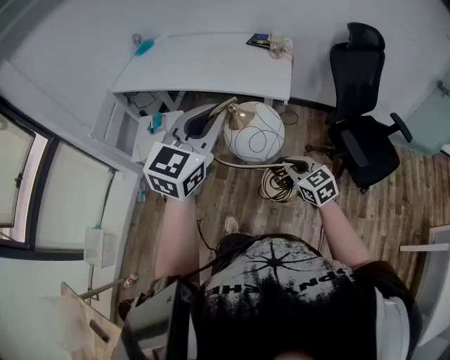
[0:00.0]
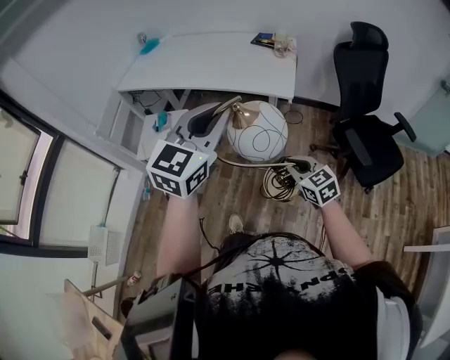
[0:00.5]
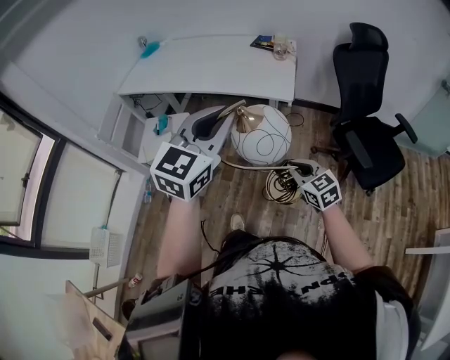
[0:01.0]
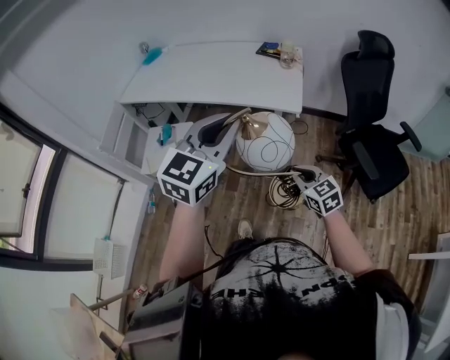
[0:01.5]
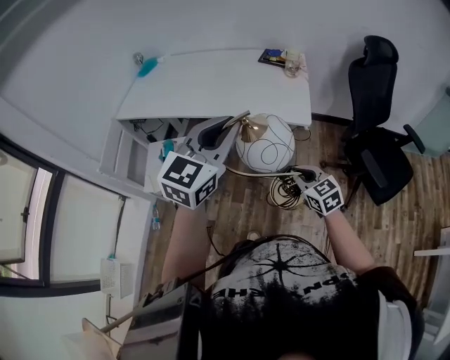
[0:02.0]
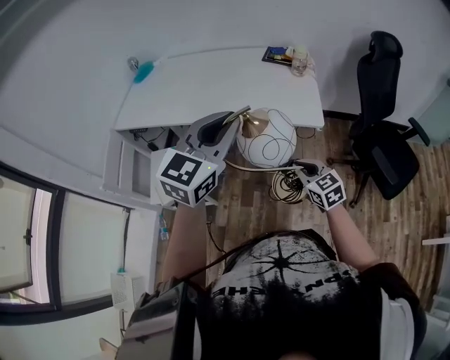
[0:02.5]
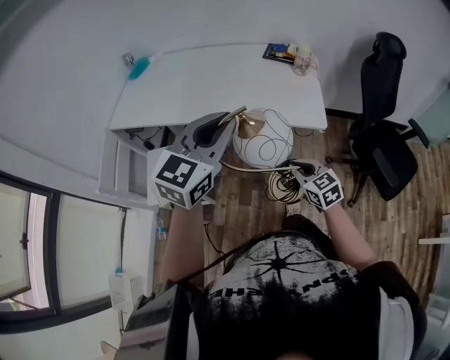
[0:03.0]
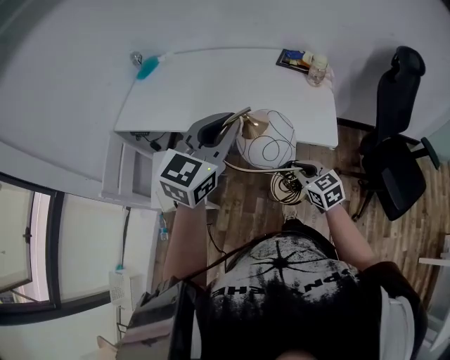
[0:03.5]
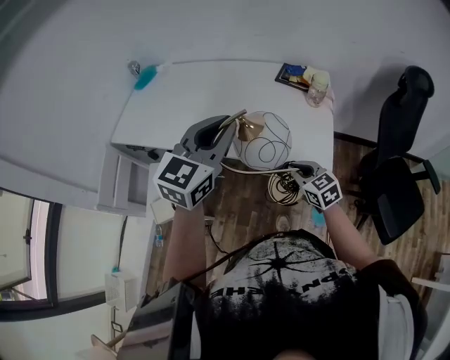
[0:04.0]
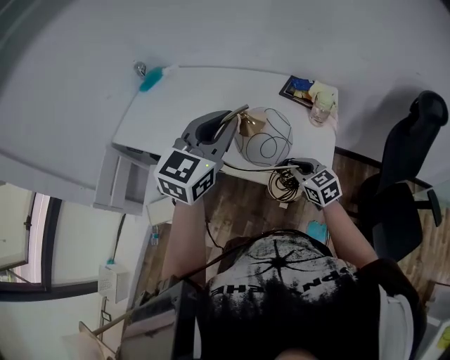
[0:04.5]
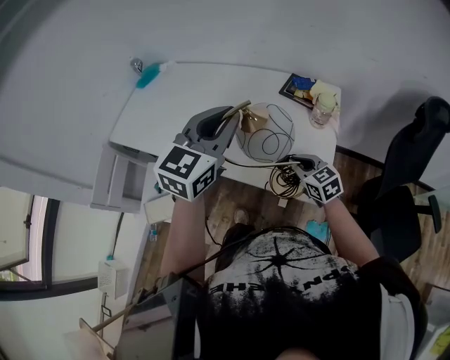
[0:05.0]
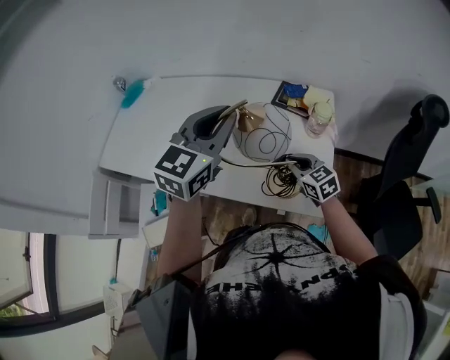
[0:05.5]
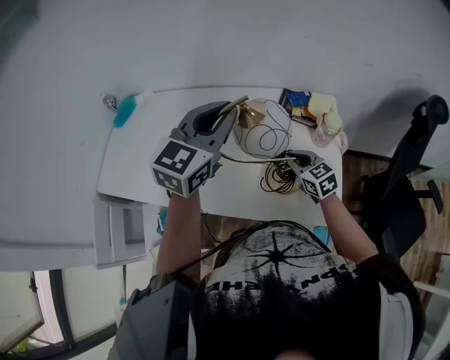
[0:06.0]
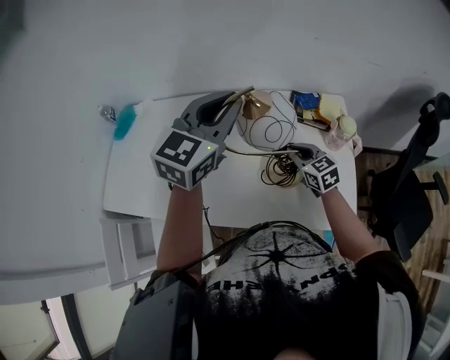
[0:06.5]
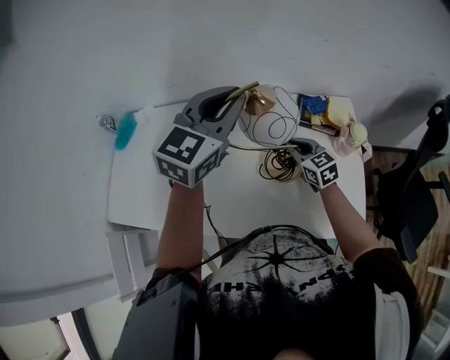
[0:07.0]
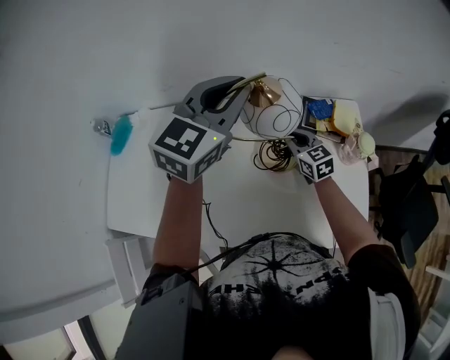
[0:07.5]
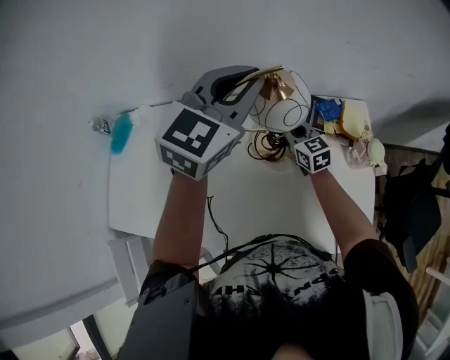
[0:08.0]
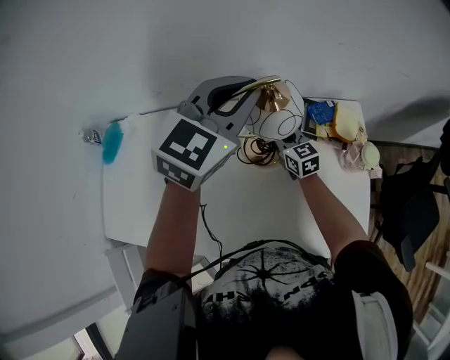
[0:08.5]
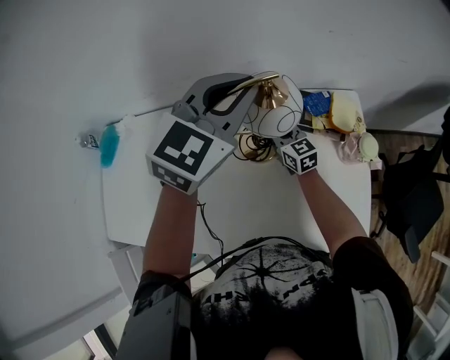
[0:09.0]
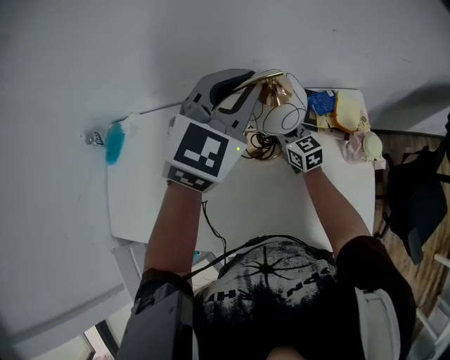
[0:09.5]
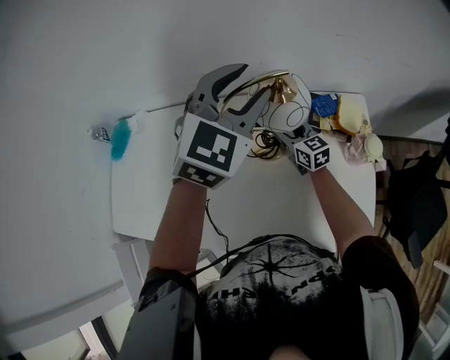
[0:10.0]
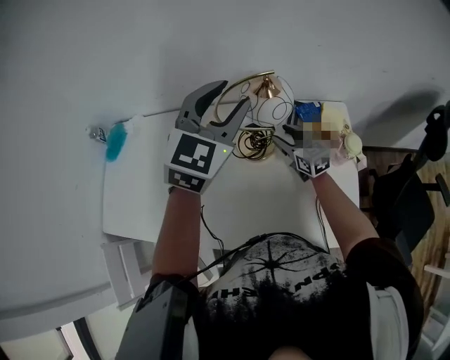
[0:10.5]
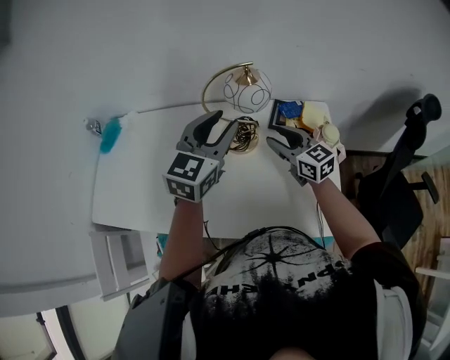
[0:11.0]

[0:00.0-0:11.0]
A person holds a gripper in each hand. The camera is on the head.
0:00.0 to 0:02.0: Both grippers move forward and to the left, some 15 cm.
0:02.0 to 0:03.5: The grippers both shift forward and to the left by about 20 cm.
0:03.5 to 0:05.5: The right gripper is displaced forward by approximately 30 cm; the left gripper travels forward and to the right by roughly 30 cm.
0:05.5 to 0:07.5: The right gripper is displaced forward and to the left by about 30 cm; the left gripper goes about 25 cm forward.
0:07.5 to 0:09.0: The right gripper goes about 5 cm forward. The left gripper goes some 5 cm to the right.
0:09.0 to 0:11.0: The left gripper shifts roughly 15 cm backward, rotates approximately 20 degrees, and opens. The right gripper heads upward, backward and to the right, covering approximately 20 cm, and opens.

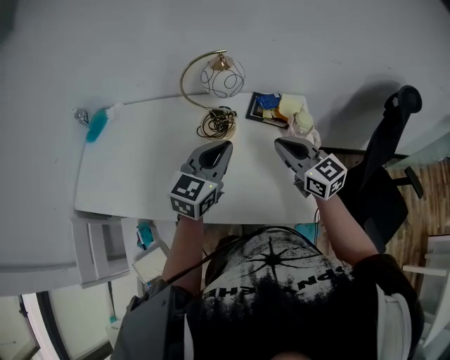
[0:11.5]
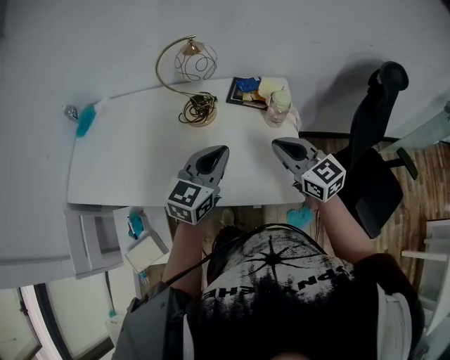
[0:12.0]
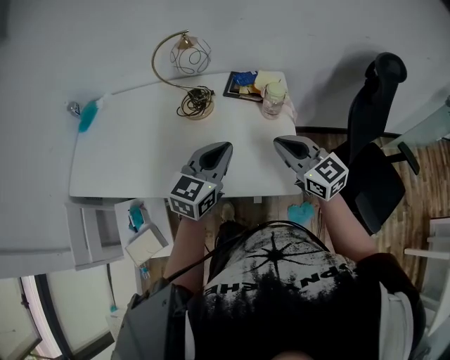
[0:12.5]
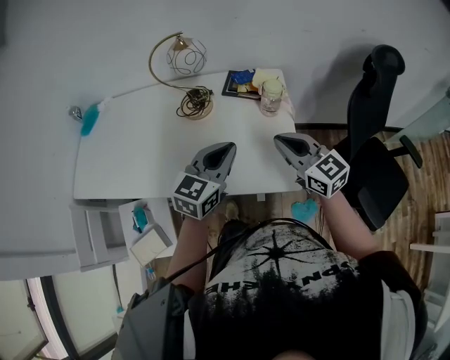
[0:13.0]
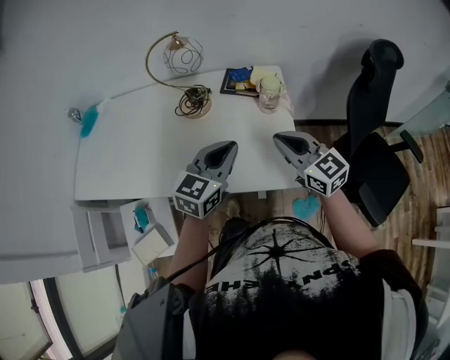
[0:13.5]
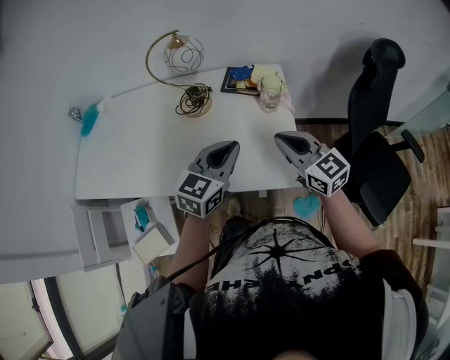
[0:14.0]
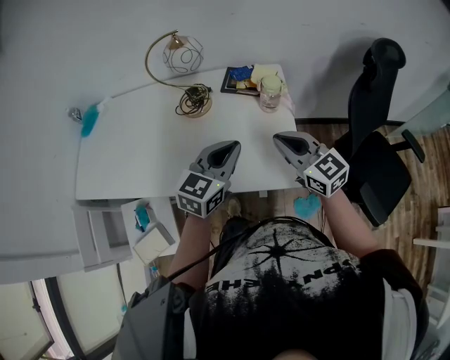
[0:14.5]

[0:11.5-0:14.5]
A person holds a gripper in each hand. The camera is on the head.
0:11.5 to 0:13.0: Both grippers move backward and to the right, approximately 15 cm.
0:13.0 to 0:14.5: There are only small adjustments of the grippers.

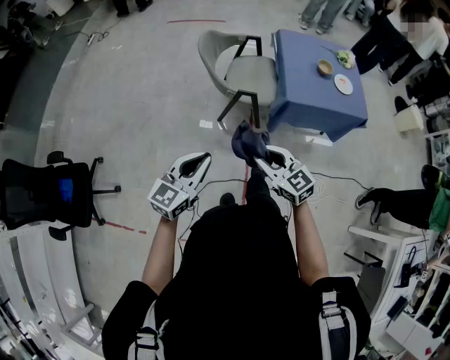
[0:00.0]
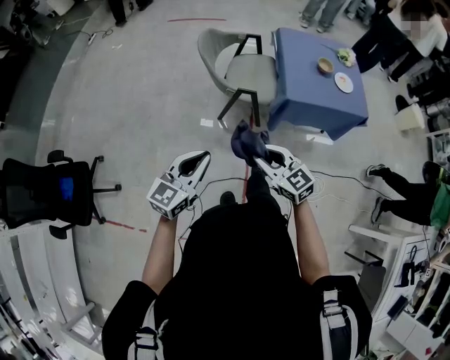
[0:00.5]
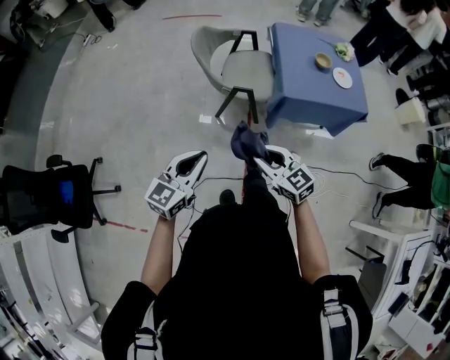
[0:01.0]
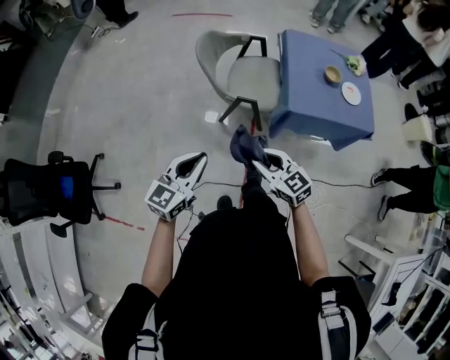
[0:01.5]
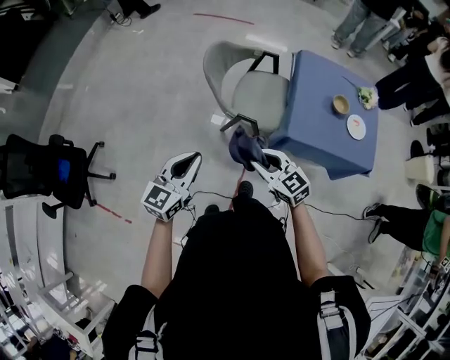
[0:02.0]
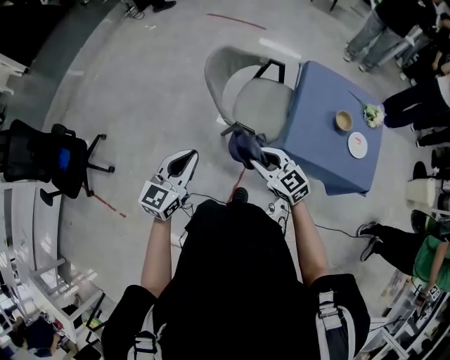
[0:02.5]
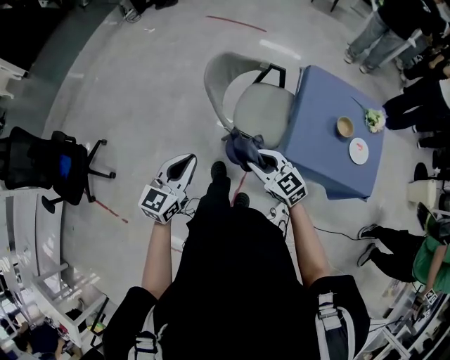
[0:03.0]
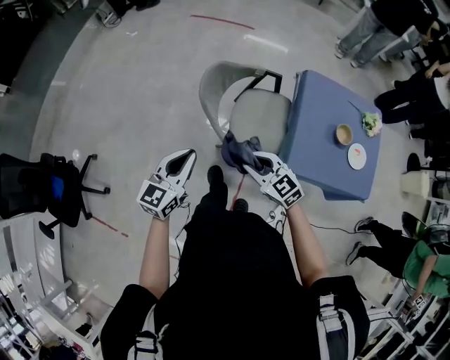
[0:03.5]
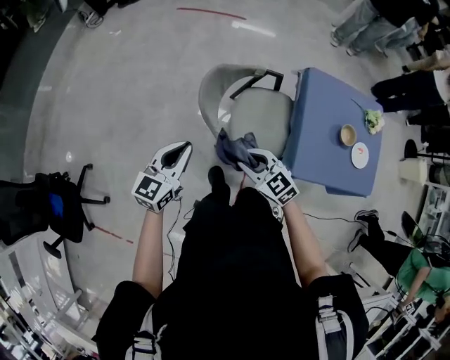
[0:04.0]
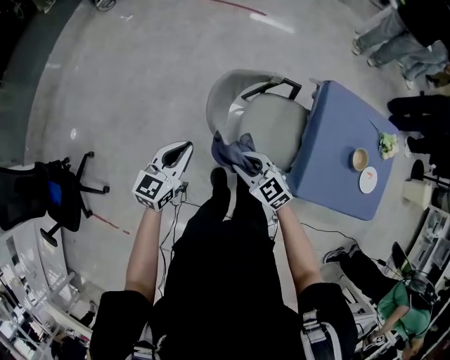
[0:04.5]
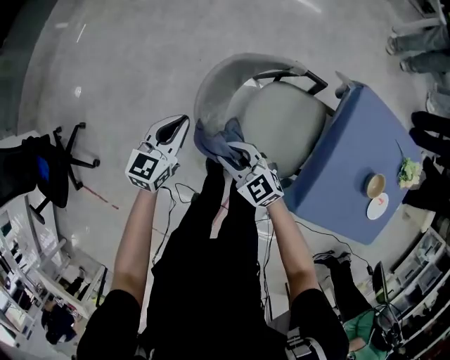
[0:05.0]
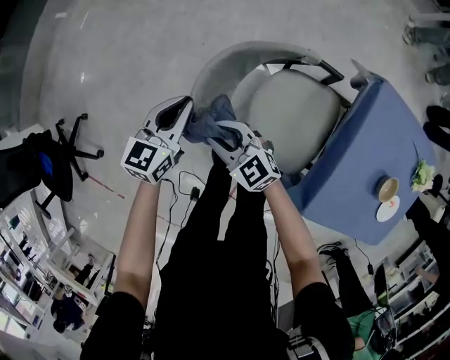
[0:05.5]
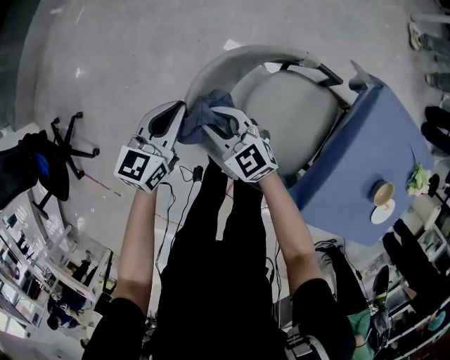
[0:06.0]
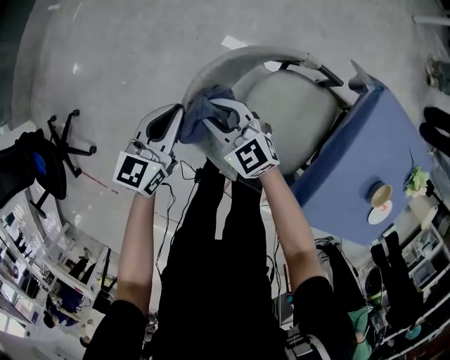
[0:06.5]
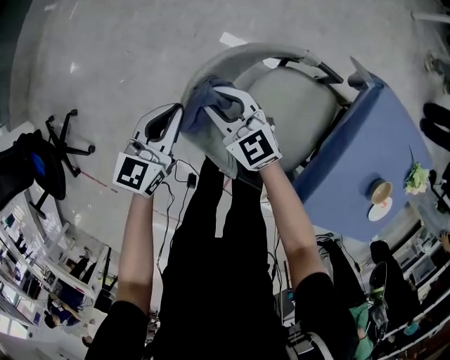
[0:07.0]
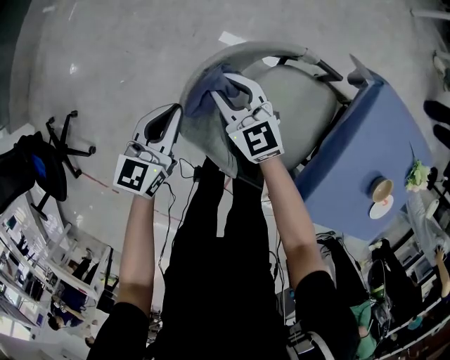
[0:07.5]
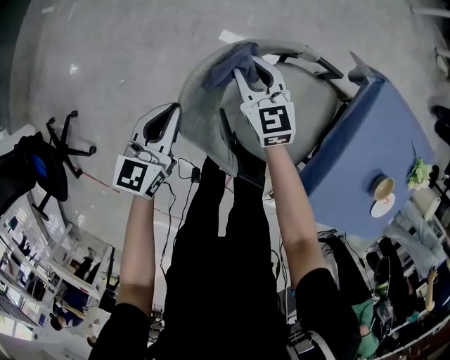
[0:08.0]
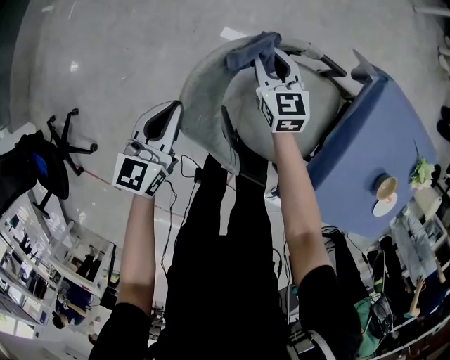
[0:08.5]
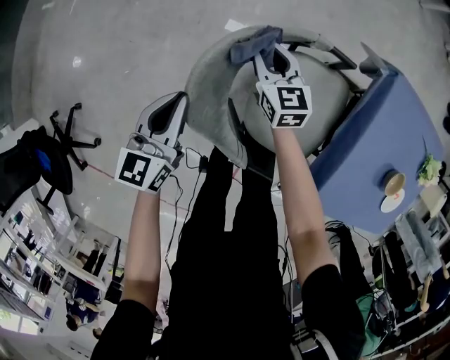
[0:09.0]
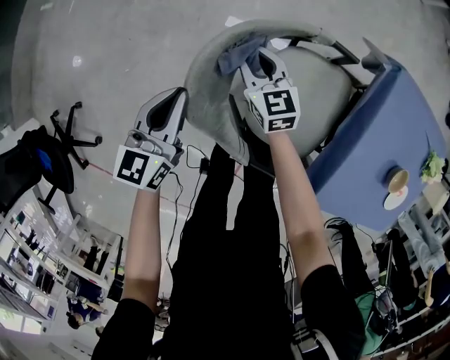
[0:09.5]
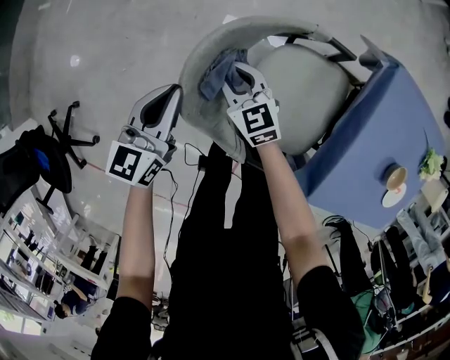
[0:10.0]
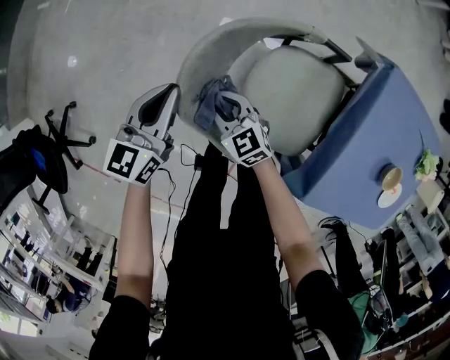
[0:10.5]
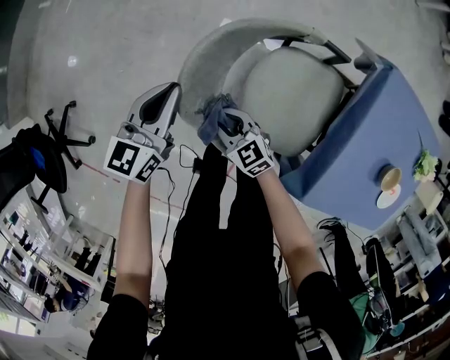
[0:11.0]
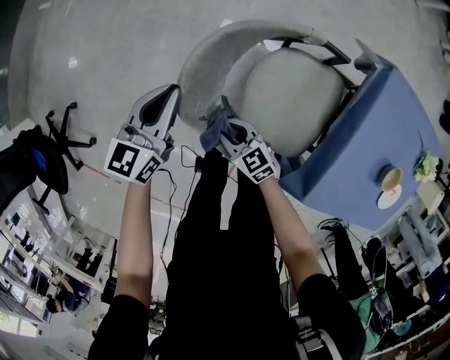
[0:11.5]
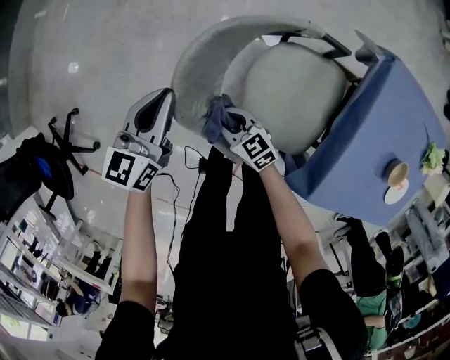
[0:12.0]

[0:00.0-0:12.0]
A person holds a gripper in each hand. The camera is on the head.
0:00.0 to 0:02.0: Both grippers move forward and to the right, approximately 20 cm.
0:02.0 to 0:04.0: Both grippers move forward, about 30 cm.
0:04.0 to 0:06.0: The left gripper is displaced downward and forward by roughly 35 cm, and changes its angle by roughly 20 degrees. The right gripper is displaced forward and downward by approximately 35 cm.
0:06.0 to 0:08.0: The right gripper is displaced forward and to the right by some 15 cm, and swivels approximately 30 degrees.
0:08.0 to 0:10.0: The right gripper shifts some 10 cm backward, to the left and downward.
0:10.0 to 0:12.0: The right gripper heads backward and downward, covering about 15 cm.

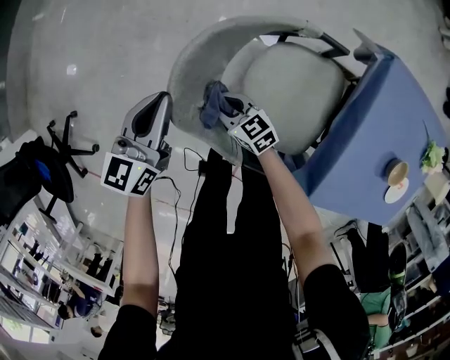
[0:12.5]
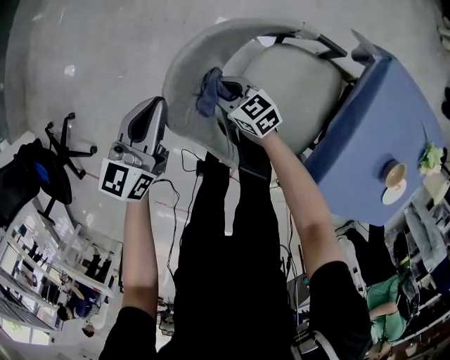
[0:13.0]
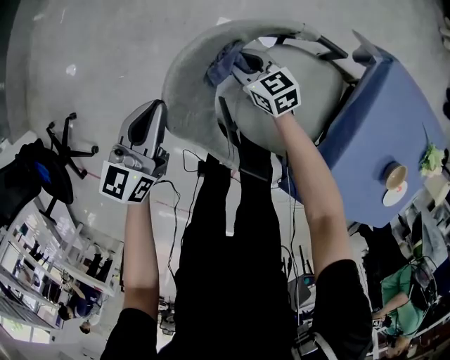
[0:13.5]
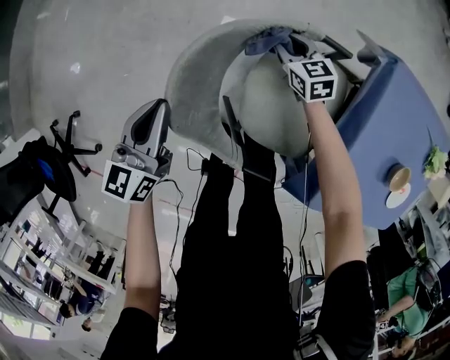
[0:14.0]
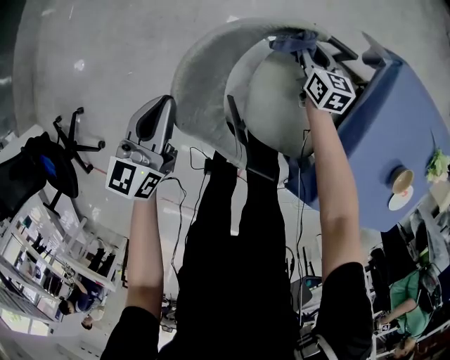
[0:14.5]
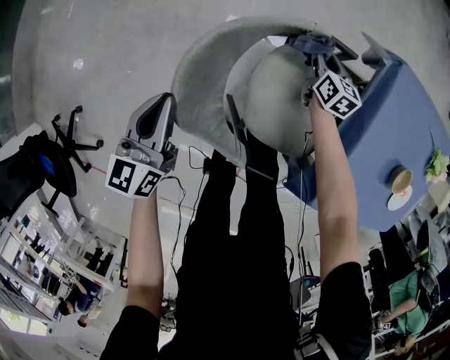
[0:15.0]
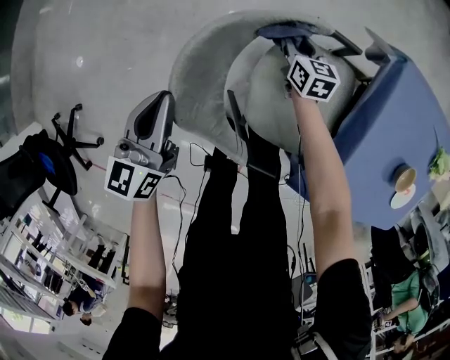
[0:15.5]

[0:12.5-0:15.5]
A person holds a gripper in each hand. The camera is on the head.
0:12.5 to 0:14.0: The right gripper travels to the right and forward by roughly 25 cm, and swivels approximately 20 degrees.
0:14.0 to 0:15.5: The right gripper travels to the right and back again, some 10 cm each way, and rotates some 20 degrees.
